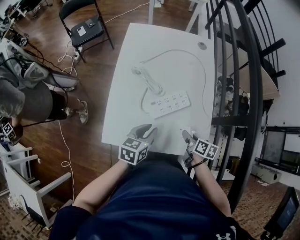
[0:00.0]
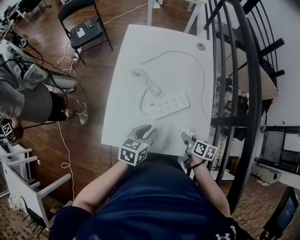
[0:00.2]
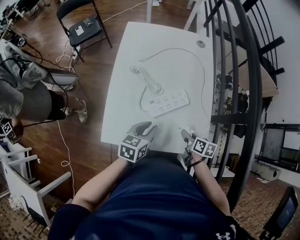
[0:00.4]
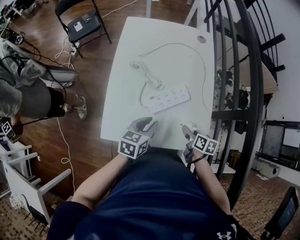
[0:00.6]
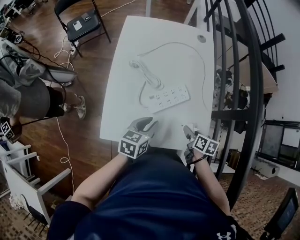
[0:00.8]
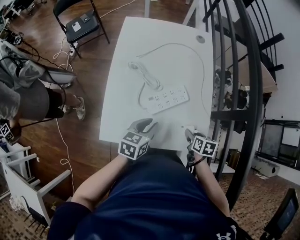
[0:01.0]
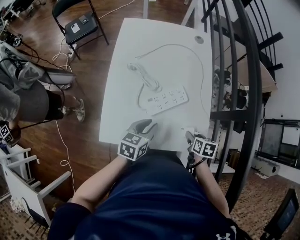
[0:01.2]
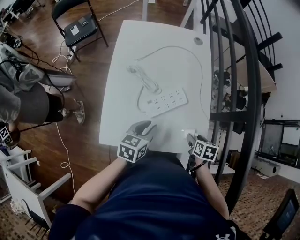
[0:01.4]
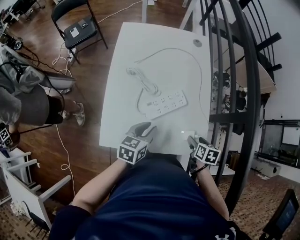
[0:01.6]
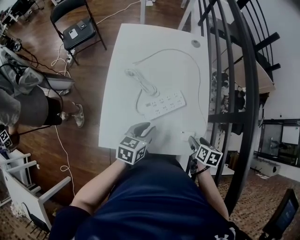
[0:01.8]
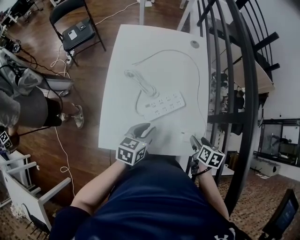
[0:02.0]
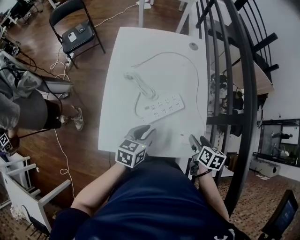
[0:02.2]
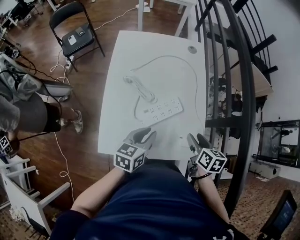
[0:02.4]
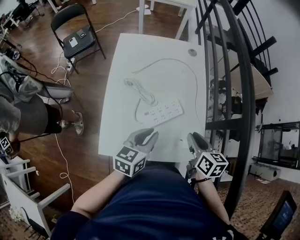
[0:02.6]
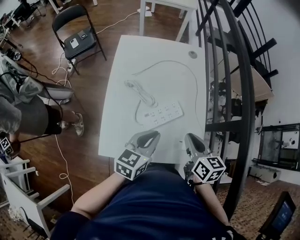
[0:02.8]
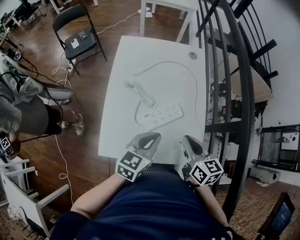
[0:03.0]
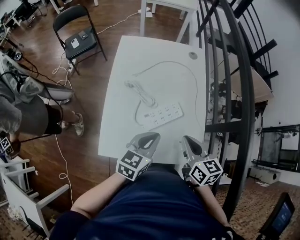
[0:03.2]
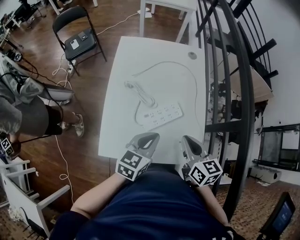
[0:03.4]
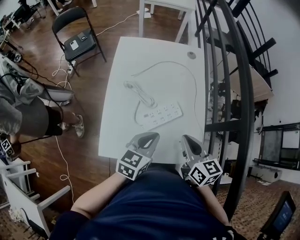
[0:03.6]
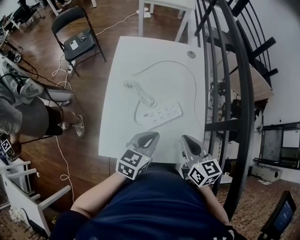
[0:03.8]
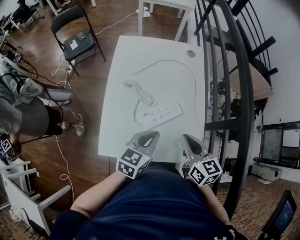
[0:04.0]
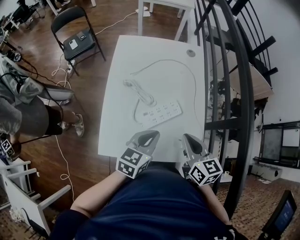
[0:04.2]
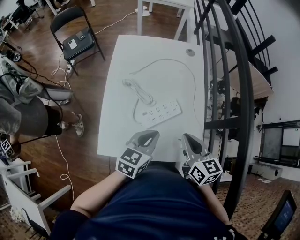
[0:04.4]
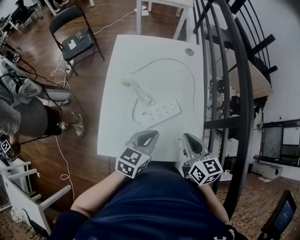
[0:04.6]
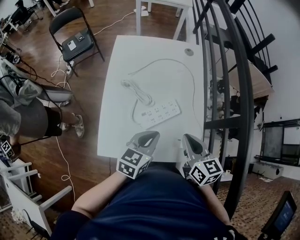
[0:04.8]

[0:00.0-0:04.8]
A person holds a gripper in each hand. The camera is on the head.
0:00.0 to 0:01.6: The right gripper is displaced to the right by some 5 cm, turns by about 20 degrees, and opens up.
0:01.6 to 0:03.2: The left gripper moves upward, approximately 10 cm, and closes. The right gripper moves upward and to the left, approximately 20 cm, tilts its fingers approximately 40 degrees upward, and closes.
0:03.2 to 0:04.8: The grippers make only small movements.

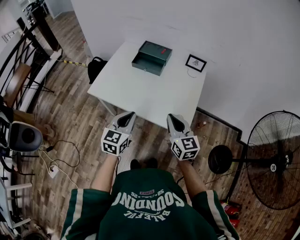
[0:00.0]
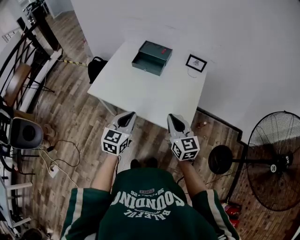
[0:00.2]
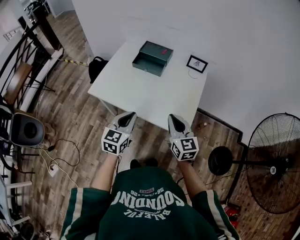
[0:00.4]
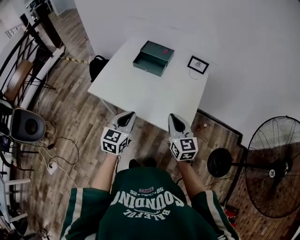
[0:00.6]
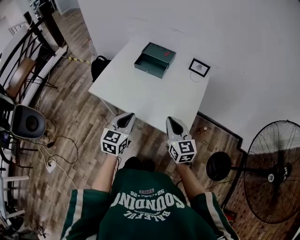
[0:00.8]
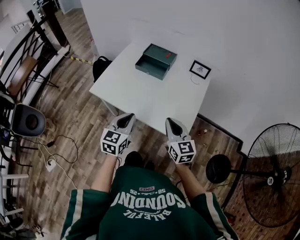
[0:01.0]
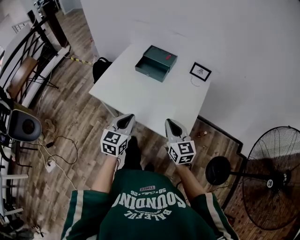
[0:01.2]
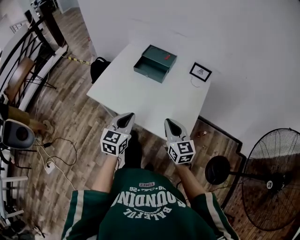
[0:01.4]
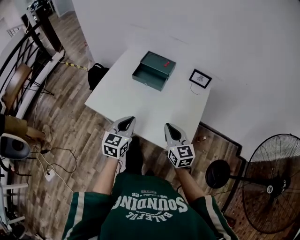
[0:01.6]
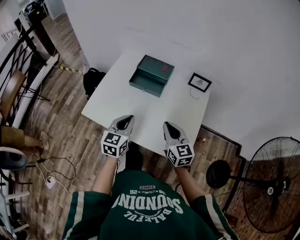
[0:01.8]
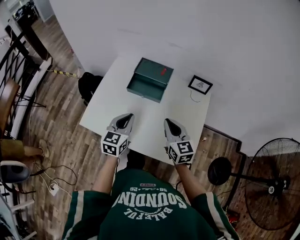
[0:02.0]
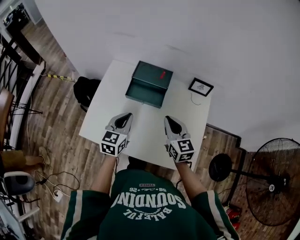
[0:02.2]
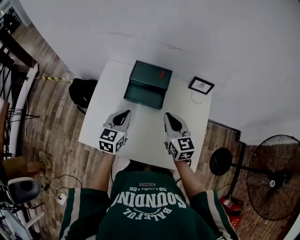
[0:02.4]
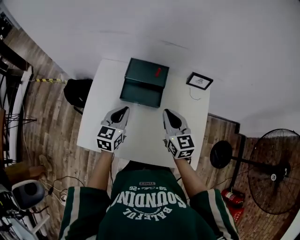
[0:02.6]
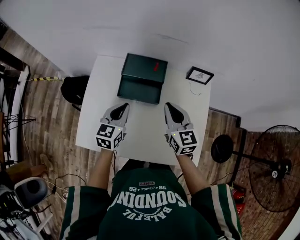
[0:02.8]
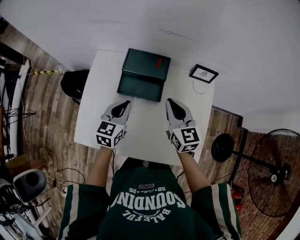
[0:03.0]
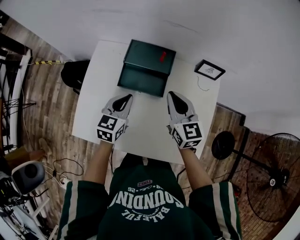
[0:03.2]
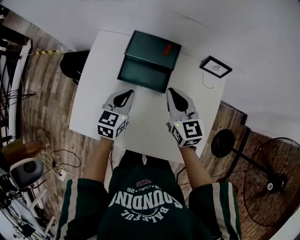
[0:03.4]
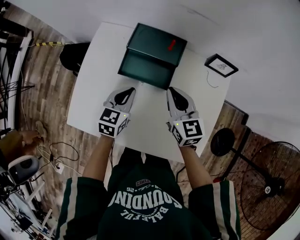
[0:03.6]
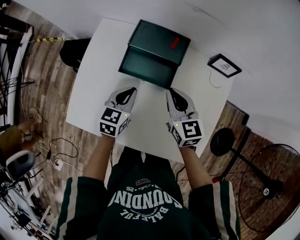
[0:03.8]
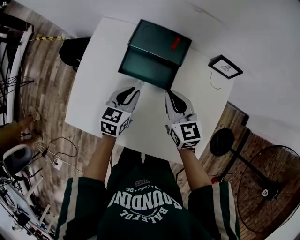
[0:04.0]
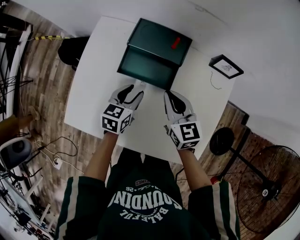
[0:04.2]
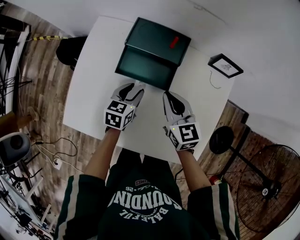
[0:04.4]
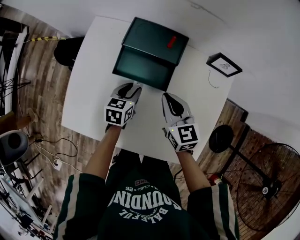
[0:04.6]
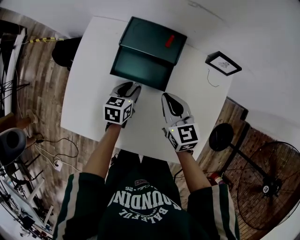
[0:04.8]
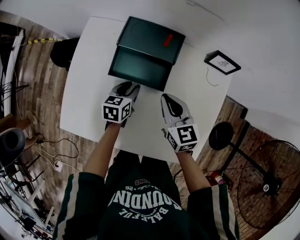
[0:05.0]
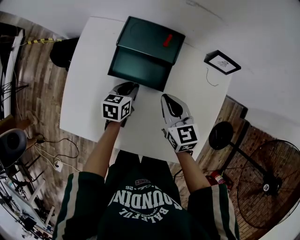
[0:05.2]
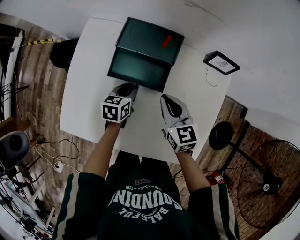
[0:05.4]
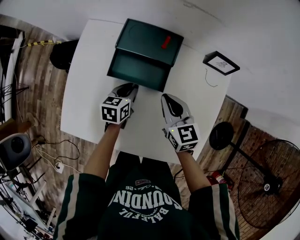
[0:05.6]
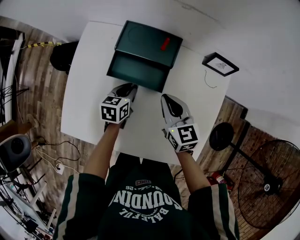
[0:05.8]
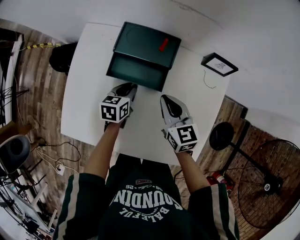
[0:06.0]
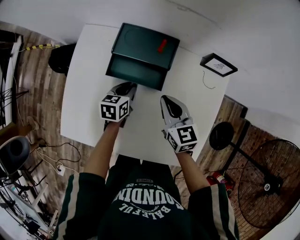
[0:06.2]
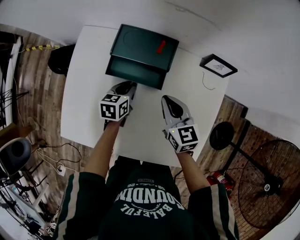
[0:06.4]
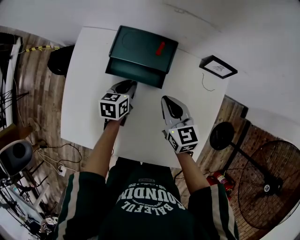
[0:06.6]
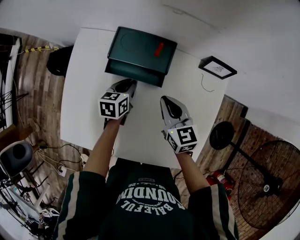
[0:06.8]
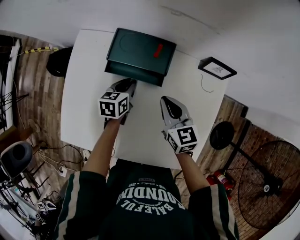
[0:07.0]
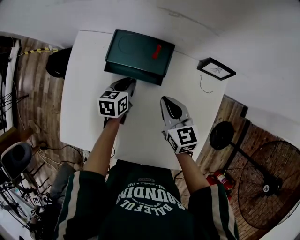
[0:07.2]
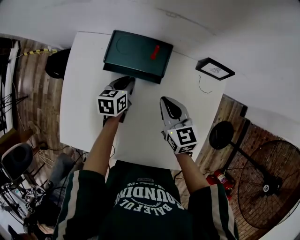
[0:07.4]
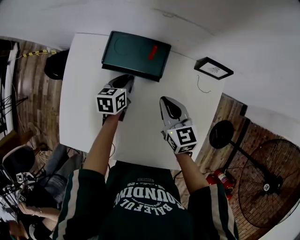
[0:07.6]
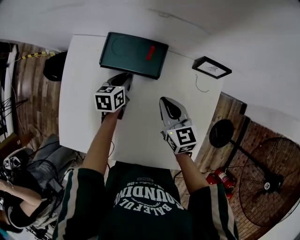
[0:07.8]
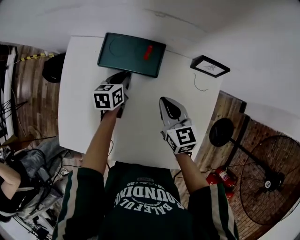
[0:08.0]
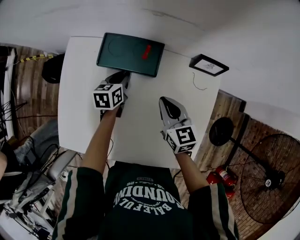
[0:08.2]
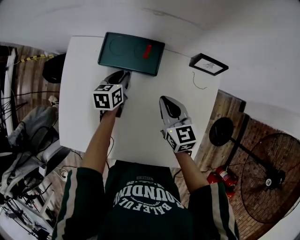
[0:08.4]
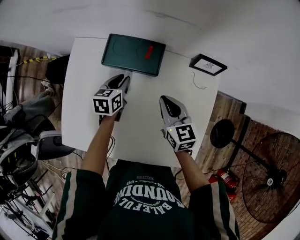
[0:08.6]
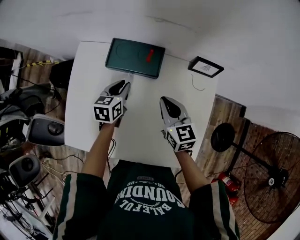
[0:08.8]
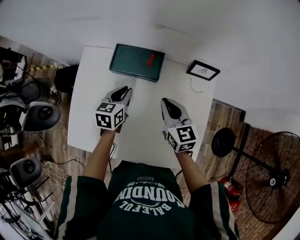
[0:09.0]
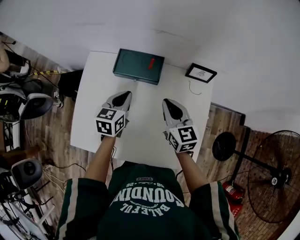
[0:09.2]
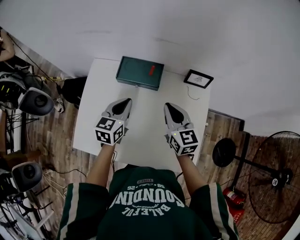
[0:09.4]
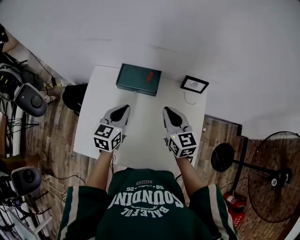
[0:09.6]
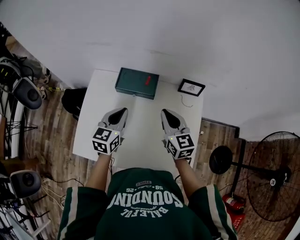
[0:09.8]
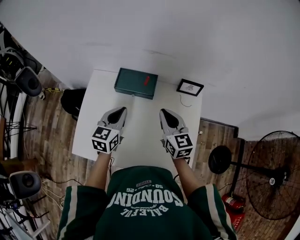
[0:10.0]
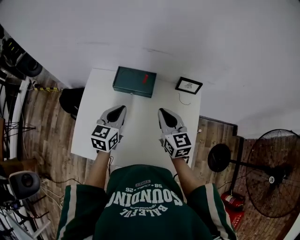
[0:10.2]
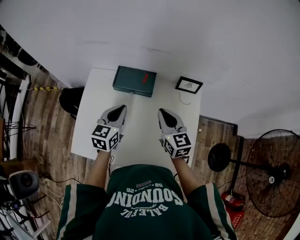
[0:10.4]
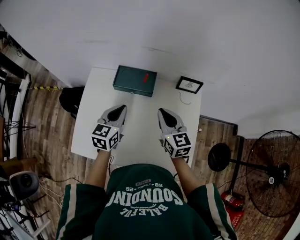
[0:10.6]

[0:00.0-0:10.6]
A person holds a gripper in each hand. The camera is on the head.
0:00.0 to 0:01.6: The two grippers go roughly 10 cm forward.
0:01.6 to 0:03.0: Both grippers move forward, some 25 cm.
0:03.0 to 0:04.6: The right gripper is displaced downward by some 10 cm. Meanwhile the left gripper heads downward, covering roughly 15 cm, swivels about 20 degrees, and opens up.
0:04.6 to 0:06.0: The grippers make only small movements.
0:06.0 to 0:07.6: The left gripper moves forward, approximately 10 cm.
0:07.6 to 0:09.0: The right gripper is displaced upward by approximately 5 cm. Meanwhile the left gripper goes about 10 cm upward and backward.
0:09.0 to 0:10.6: The left gripper goes some 15 cm upward and backward, while the right gripper goes some 10 cm upward.

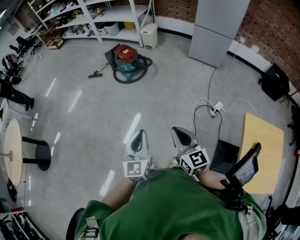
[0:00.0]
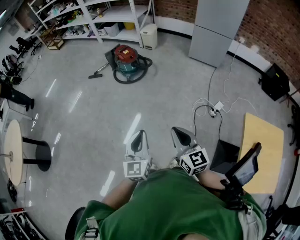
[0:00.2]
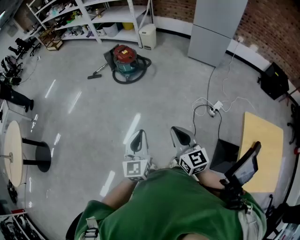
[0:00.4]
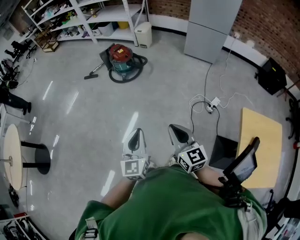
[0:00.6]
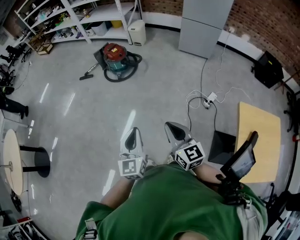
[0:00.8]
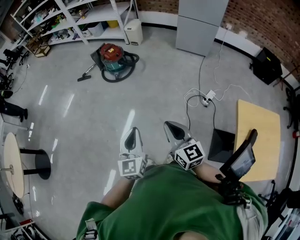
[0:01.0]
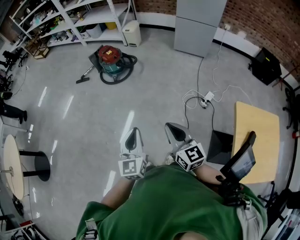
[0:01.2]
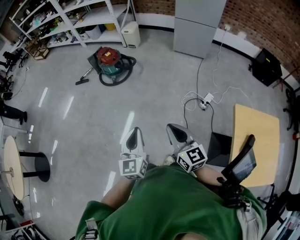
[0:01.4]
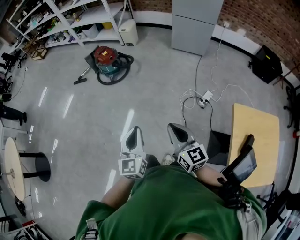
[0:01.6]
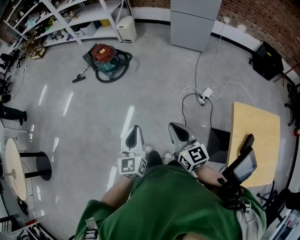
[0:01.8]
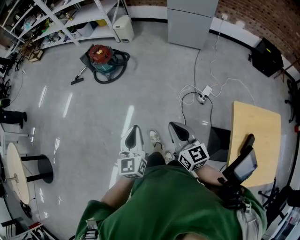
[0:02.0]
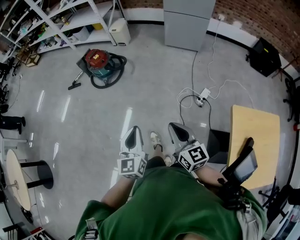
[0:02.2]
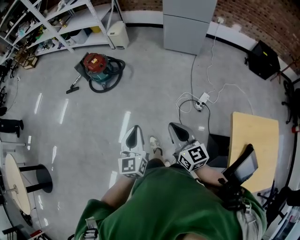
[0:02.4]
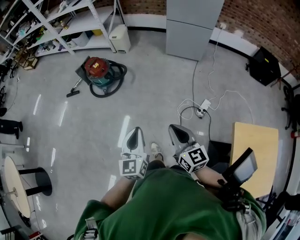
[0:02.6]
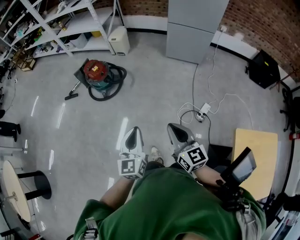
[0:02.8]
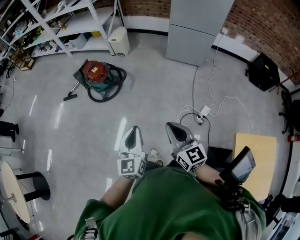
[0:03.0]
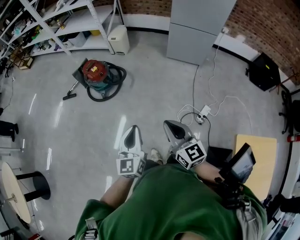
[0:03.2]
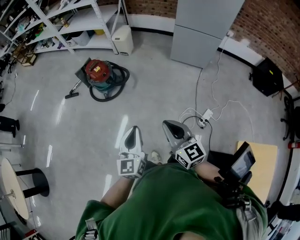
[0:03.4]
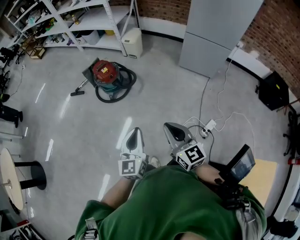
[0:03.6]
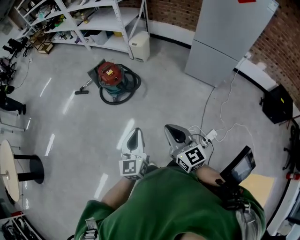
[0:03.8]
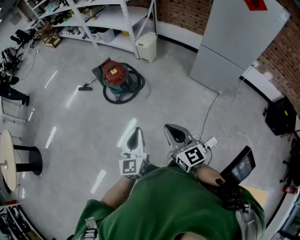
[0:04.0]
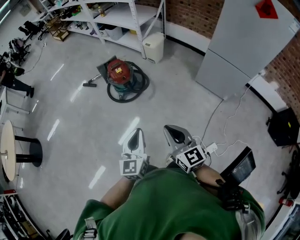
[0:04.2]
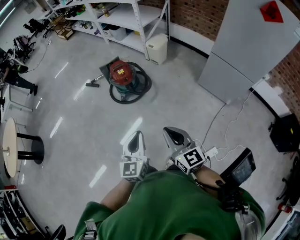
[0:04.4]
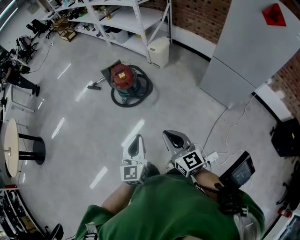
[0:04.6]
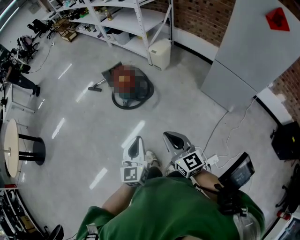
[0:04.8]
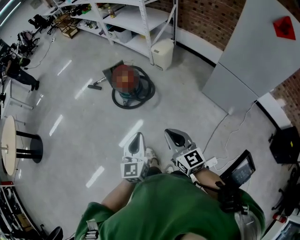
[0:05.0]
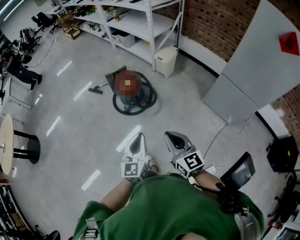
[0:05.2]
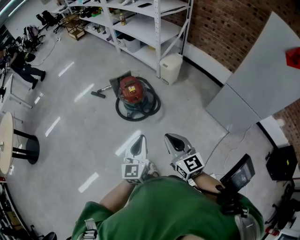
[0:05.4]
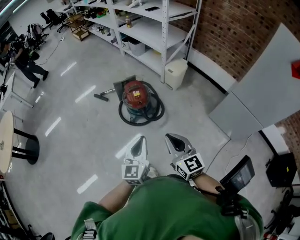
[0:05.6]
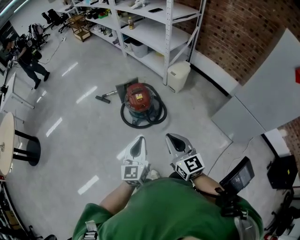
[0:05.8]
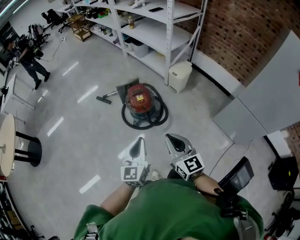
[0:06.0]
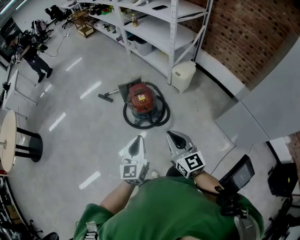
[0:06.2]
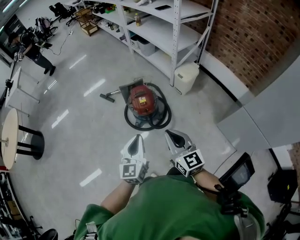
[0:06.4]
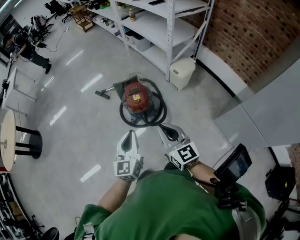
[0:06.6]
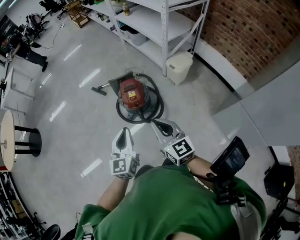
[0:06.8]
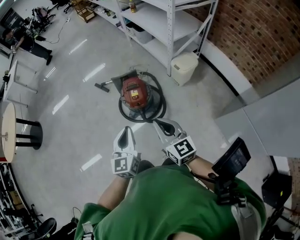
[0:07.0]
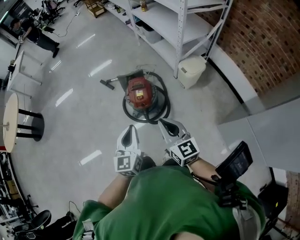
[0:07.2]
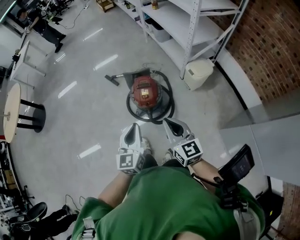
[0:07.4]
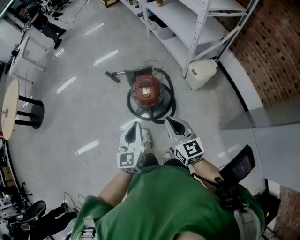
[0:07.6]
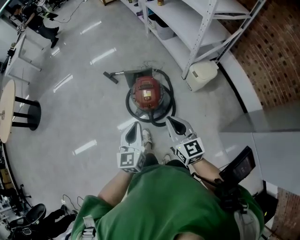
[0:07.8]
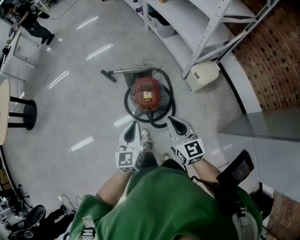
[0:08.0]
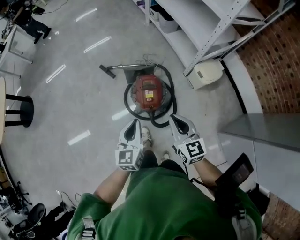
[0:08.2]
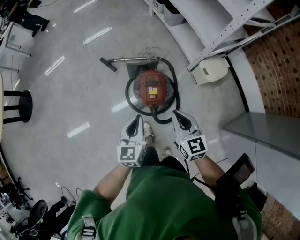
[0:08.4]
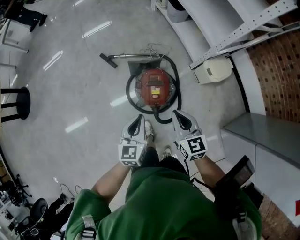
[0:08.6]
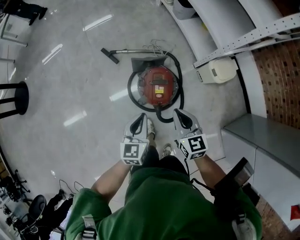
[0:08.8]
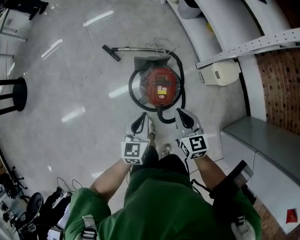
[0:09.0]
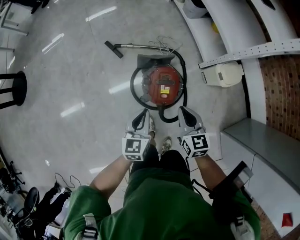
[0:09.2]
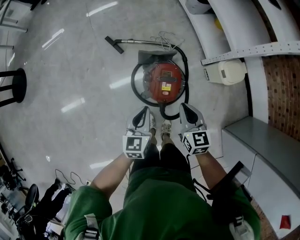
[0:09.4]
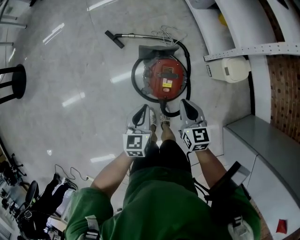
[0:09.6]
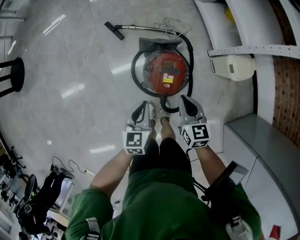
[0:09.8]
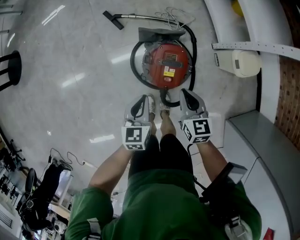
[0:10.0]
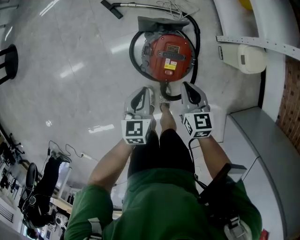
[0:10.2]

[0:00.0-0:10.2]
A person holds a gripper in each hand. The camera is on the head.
0:00.0 to 0:01.4: The two grippers go some 10 cm to the right.
0:01.4 to 0:03.0: Both grippers move forward, roughly 25 cm.
0:03.0 to 0:04.4: The left gripper heads forward and to the right, covering about 15 cm, and rotates about 20 degrees; the right gripper moves forward, approximately 20 cm, and turns by roughly 30 degrees.
0:04.4 to 0:05.8: Both grippers move forward, about 25 cm.
0:05.8 to 0:07.2: The two grippers go approximately 20 cm forward and to the right.
0:07.2 to 0:08.8: Both grippers travel together forward and downward, about 30 cm. The right gripper swivels roughly 20 degrees.
0:08.8 to 0:10.2: The two grippers go about 20 cm downward.
